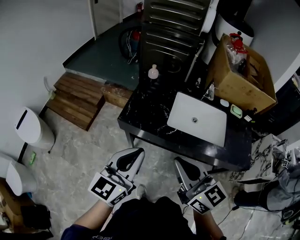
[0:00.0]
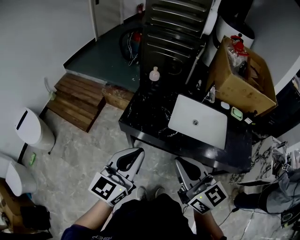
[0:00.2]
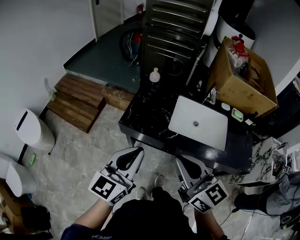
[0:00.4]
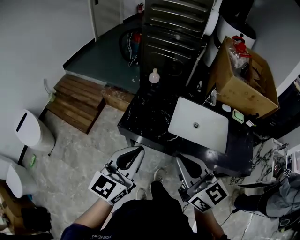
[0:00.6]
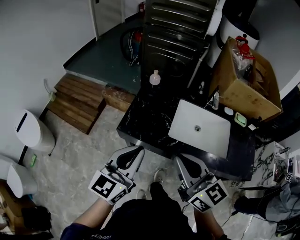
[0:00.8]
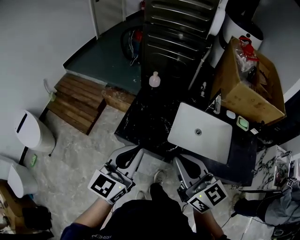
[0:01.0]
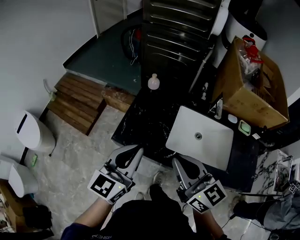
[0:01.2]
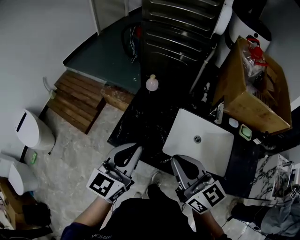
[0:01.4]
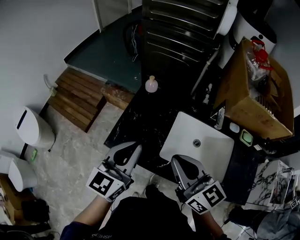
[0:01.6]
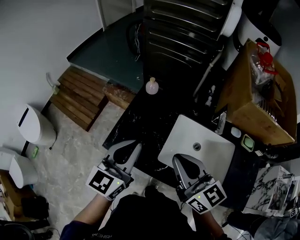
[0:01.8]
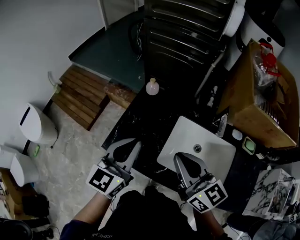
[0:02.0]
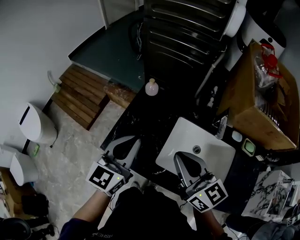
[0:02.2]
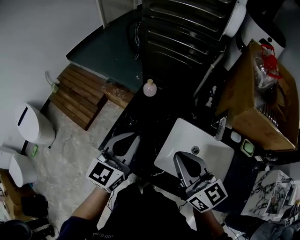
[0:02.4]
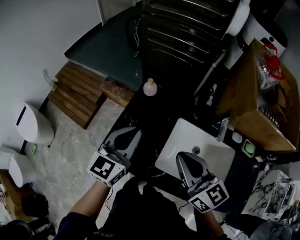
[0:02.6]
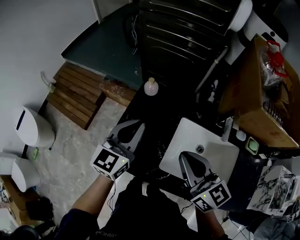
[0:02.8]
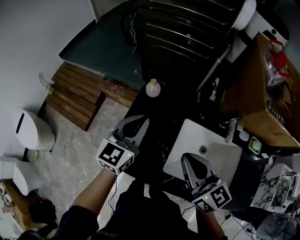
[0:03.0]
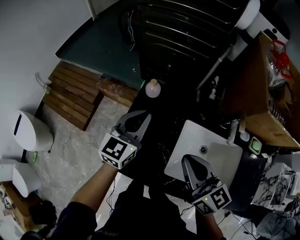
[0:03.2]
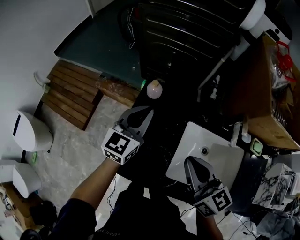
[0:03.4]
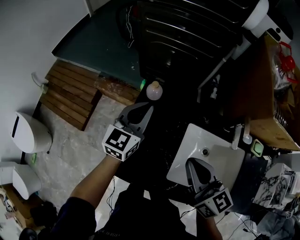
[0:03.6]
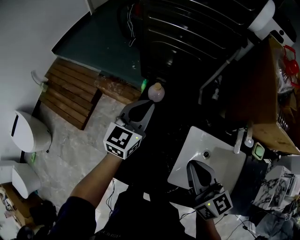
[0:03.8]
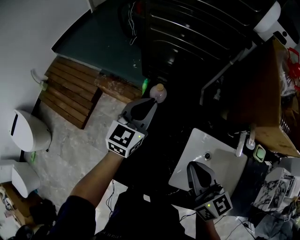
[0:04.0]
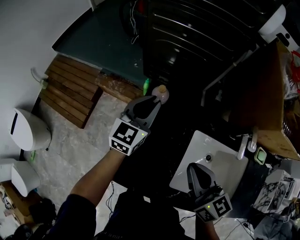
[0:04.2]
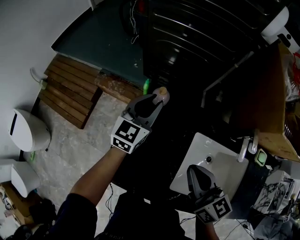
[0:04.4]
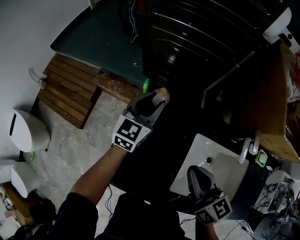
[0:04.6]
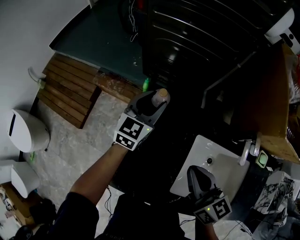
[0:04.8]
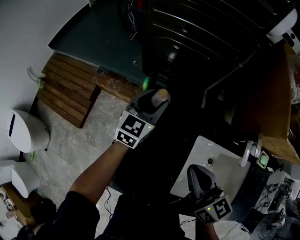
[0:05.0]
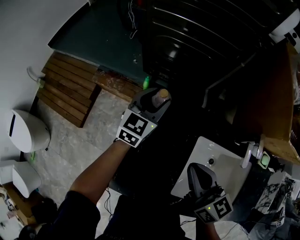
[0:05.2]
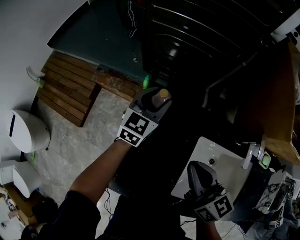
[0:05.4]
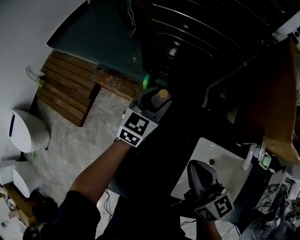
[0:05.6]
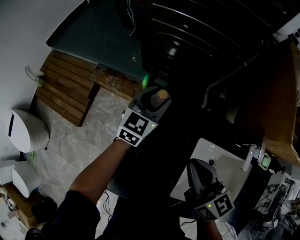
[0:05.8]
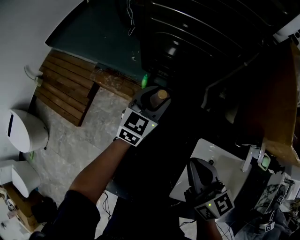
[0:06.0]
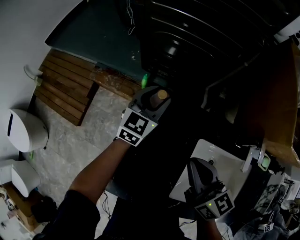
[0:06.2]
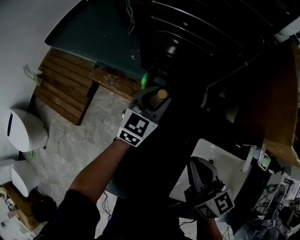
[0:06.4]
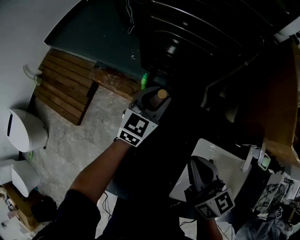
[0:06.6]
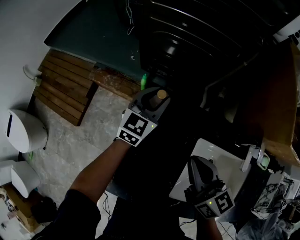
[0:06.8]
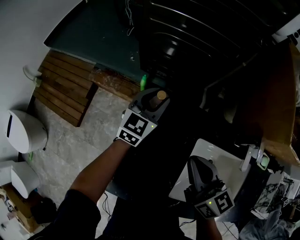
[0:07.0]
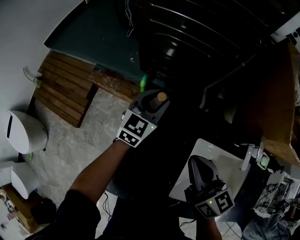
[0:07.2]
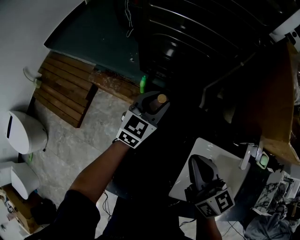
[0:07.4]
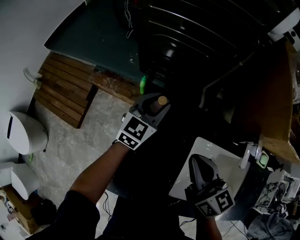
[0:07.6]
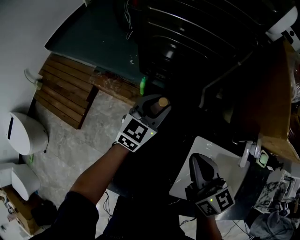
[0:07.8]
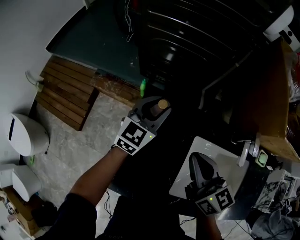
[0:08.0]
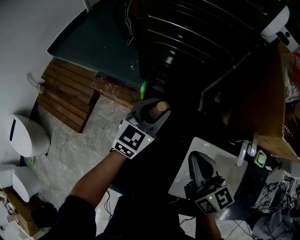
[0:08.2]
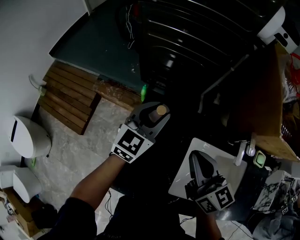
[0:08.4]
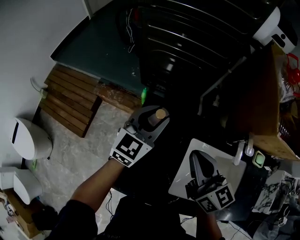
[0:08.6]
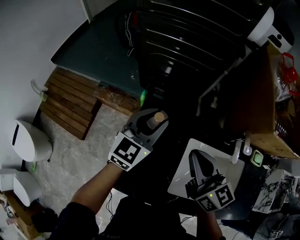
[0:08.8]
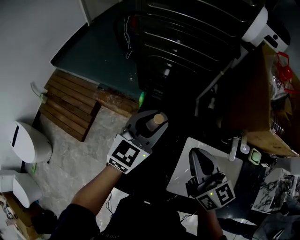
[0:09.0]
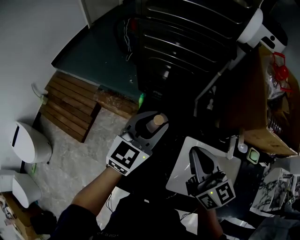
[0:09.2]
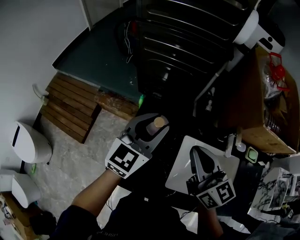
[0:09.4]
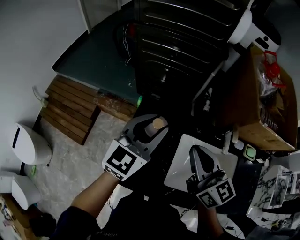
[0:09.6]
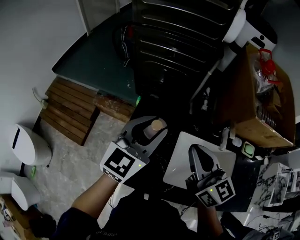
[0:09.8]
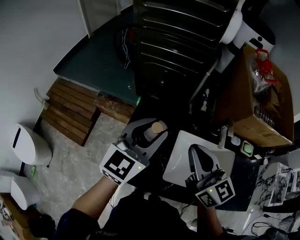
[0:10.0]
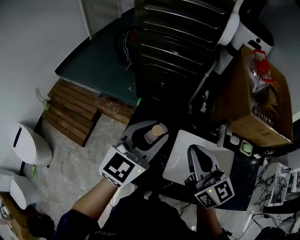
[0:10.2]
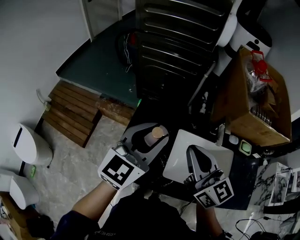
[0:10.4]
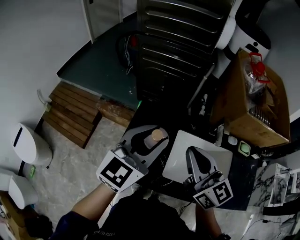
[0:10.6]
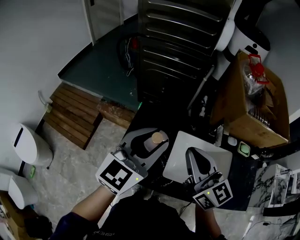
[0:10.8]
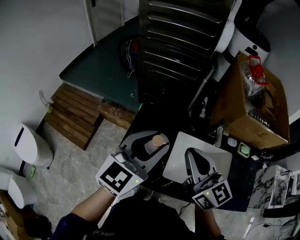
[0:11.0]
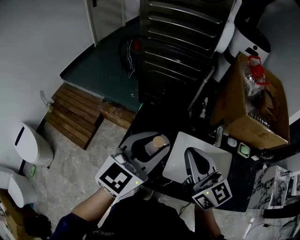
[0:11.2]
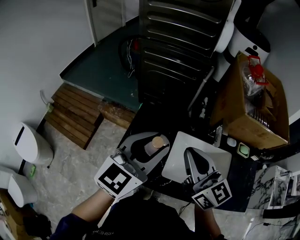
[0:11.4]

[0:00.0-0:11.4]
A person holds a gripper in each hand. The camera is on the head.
0:00.0 to 0:01.4: The grippers both shift forward by roughly 20 cm.
0:01.4 to 0:02.8: The left gripper heads forward, covering some 20 cm. Meanwhile the right gripper goes some 15 cm forward and to the right.
0:02.8 to 0:04.2: The right gripper travels forward and downward by roughly 10 cm. The left gripper moves forward and downward, some 20 cm.
0:04.2 to 0:05.6: The right gripper travels forward by about 5 cm, while the left gripper travels forward and downward by about 10 cm, and opens.
0:05.6 to 0:07.2: There are only small adjustments of the grippers.
0:07.2 to 0:08.6: The left gripper shifts some 15 cm upward and backward. The right gripper heads upward, covering about 5 cm.
0:08.6 to 0:10.0: The right gripper goes about 15 cm upward and backward, while the left gripper goes about 20 cm backward and upward.
0:10.0 to 0:11.4: The left gripper moves backward and upward, some 10 cm. Meanwhile the right gripper shifts roughly 5 cm backward.

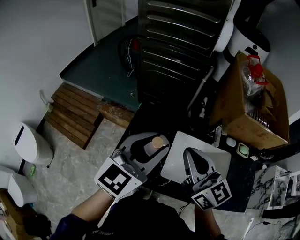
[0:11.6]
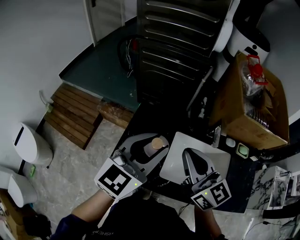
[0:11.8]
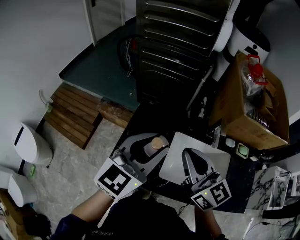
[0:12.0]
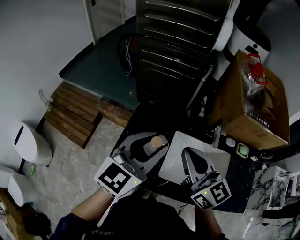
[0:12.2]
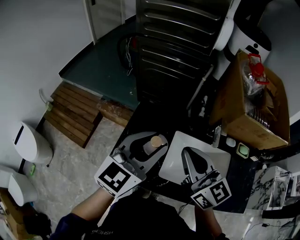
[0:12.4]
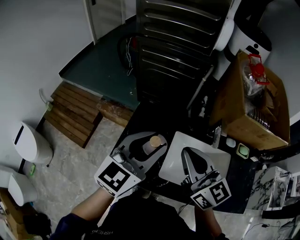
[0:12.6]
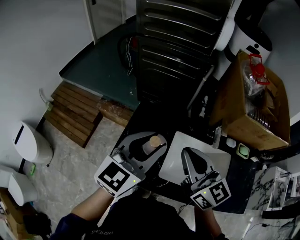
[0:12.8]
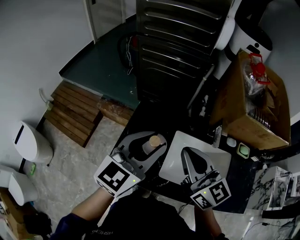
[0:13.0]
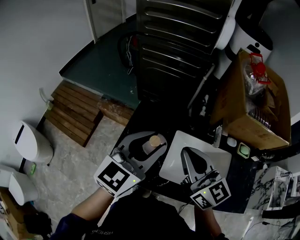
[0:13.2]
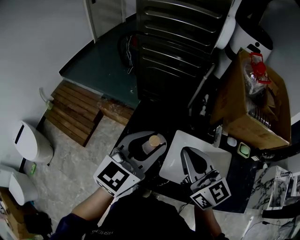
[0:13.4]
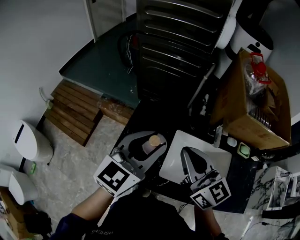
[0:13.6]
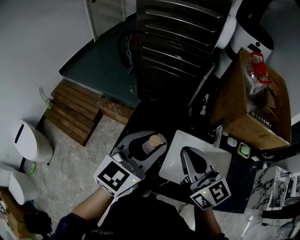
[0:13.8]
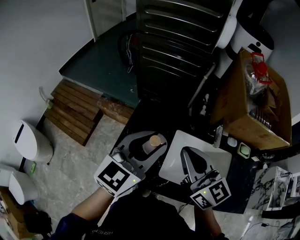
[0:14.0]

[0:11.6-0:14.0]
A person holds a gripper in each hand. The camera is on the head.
0:11.6 to 0:12.8: The grippers move only a little.
0:12.8 to 0:14.0: Both grippers stay put.

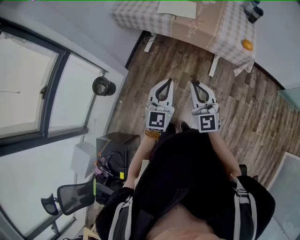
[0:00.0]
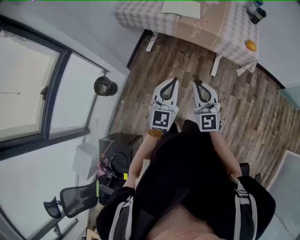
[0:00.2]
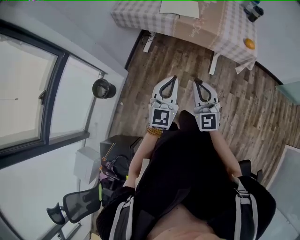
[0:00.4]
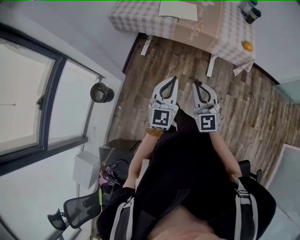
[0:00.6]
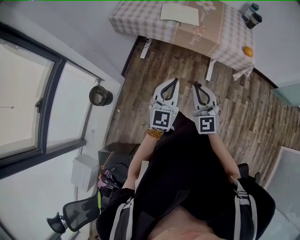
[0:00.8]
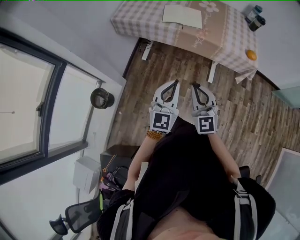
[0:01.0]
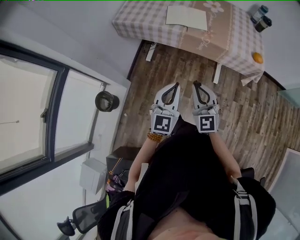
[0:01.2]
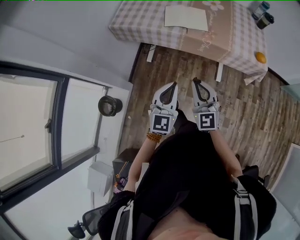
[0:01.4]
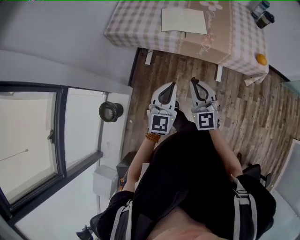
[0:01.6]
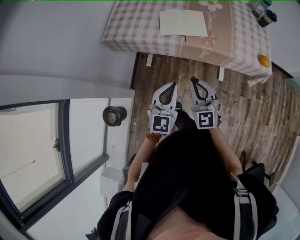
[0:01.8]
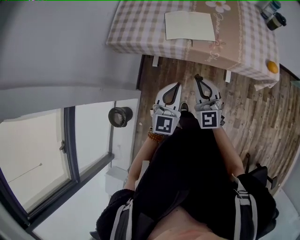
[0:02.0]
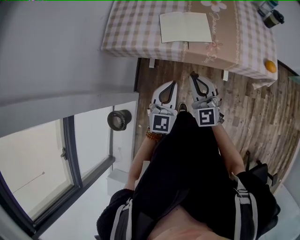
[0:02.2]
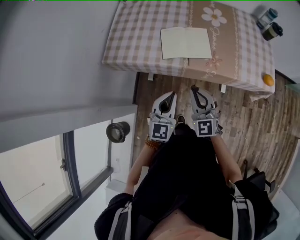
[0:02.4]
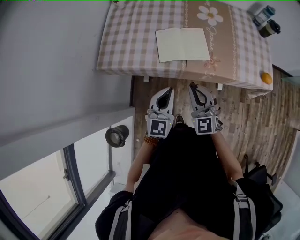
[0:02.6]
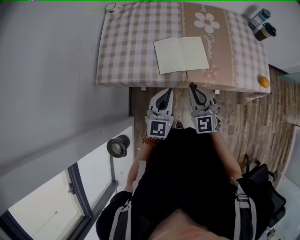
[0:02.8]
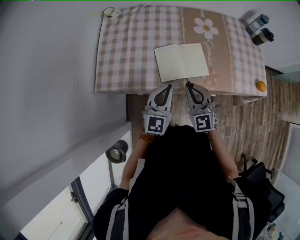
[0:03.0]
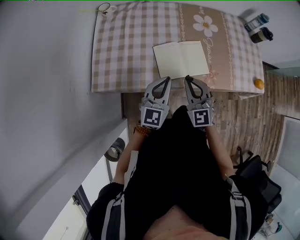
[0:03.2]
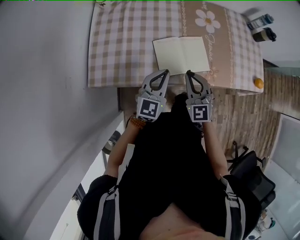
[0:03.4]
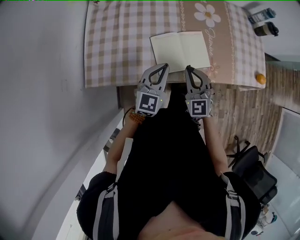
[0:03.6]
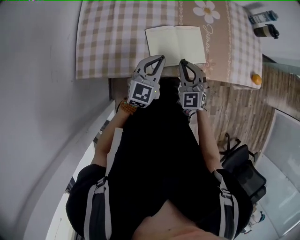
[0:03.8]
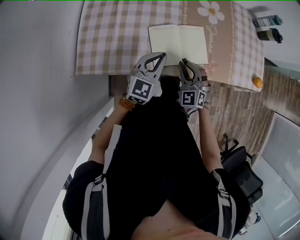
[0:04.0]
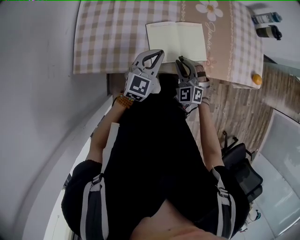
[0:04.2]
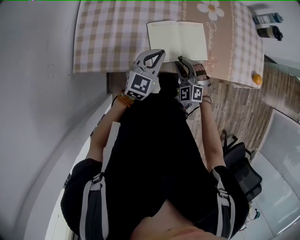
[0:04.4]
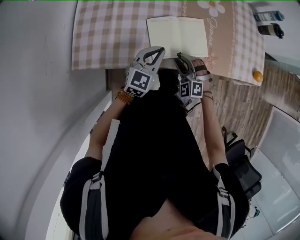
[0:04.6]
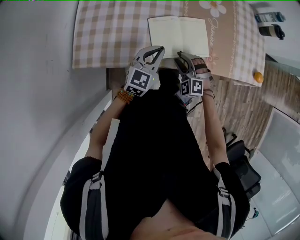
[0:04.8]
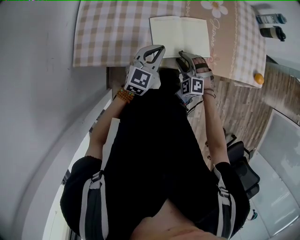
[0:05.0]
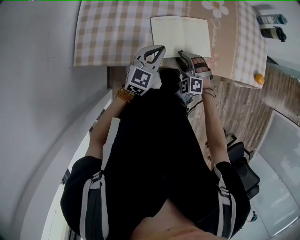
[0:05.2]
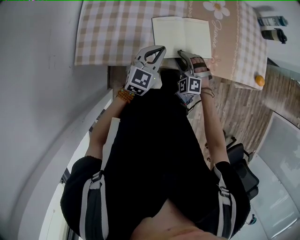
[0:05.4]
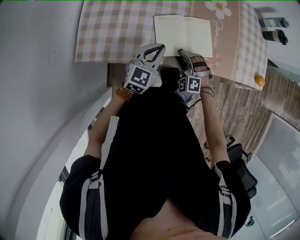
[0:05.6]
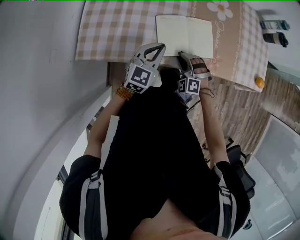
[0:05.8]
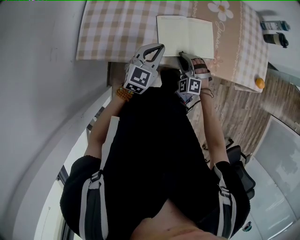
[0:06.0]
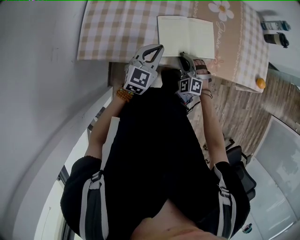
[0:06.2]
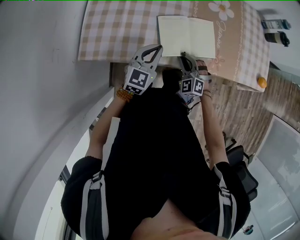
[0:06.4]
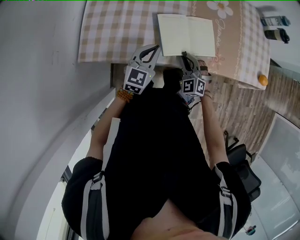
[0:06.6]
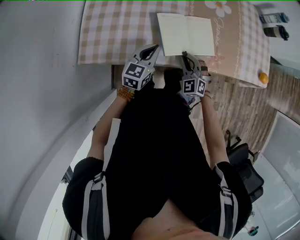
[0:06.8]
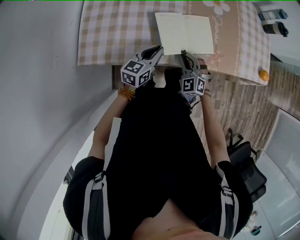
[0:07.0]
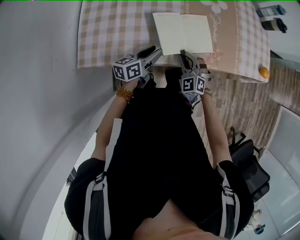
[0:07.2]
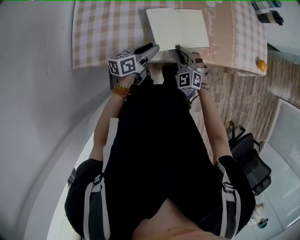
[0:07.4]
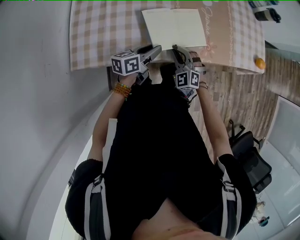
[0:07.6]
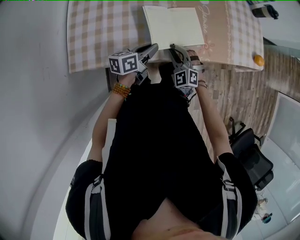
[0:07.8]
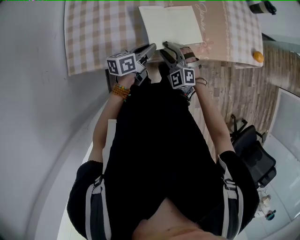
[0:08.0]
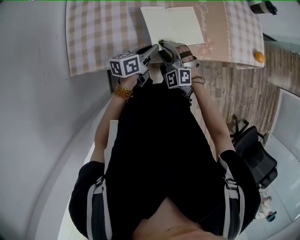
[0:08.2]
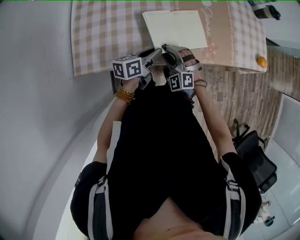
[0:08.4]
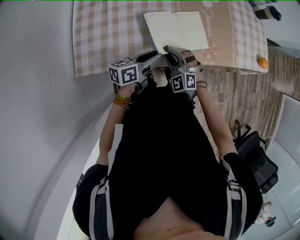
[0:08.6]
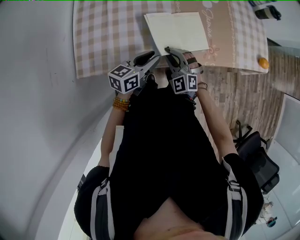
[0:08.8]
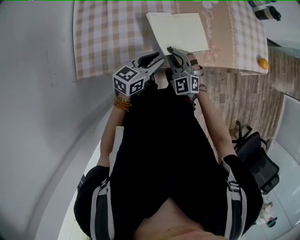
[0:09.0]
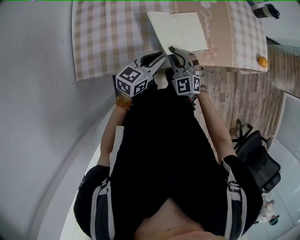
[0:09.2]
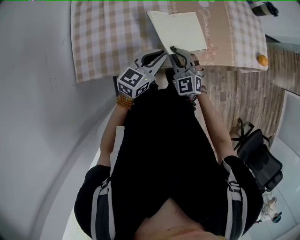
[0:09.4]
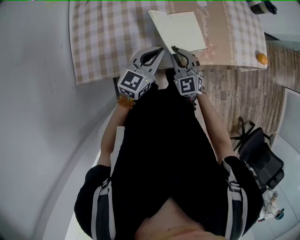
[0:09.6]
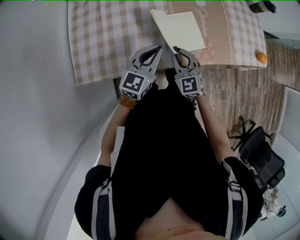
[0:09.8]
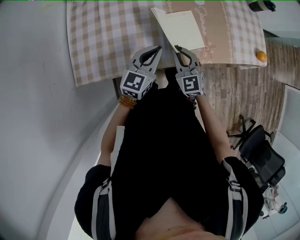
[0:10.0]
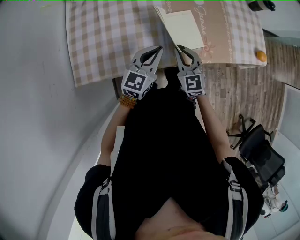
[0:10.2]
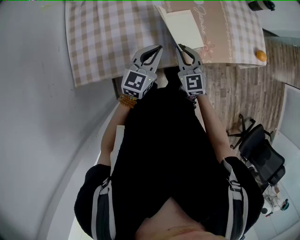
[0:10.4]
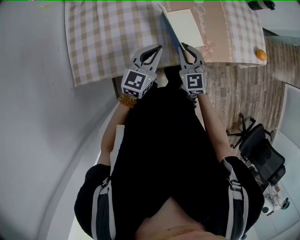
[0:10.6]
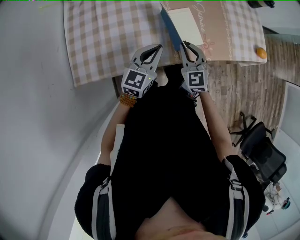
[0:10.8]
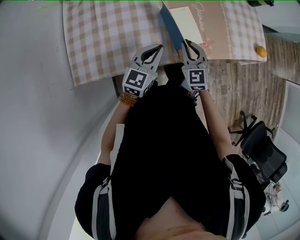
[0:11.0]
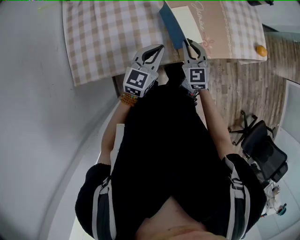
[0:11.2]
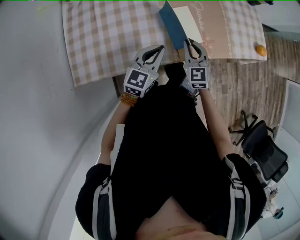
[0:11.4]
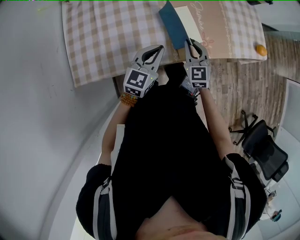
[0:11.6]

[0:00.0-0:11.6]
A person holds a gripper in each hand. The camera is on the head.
0:00.0 to 0:01.4: Both grippers move forward and to the left, some 20 cm.
0:01.4 to 0:02.8: Both grippers travel together forward, approximately 35 cm.
0:02.8 to 0:04.4: The right gripper moves downward and forward, some 20 cm, changes its angle by about 40 degrees, and opens up; the left gripper heads forward and downward, covering about 15 cm.
0:04.4 to 0:05.8: The grippers make only small movements.
0:05.8 to 0:07.2: The left gripper shifts approximately 5 cm downward, rotates around the line of its fingers by about 40 degrees, counterclockwise from behind, and opens up, while the right gripper turns by approximately 30 degrees.
0:07.2 to 0:08.8: The right gripper shifts some 5 cm to the left, and opens and closes again.
0:08.8 to 0:10.2: The right gripper travels to the right by some 5 cm, and changes its angle by roughly 40 degrees. Meanwhile the left gripper changes place by roughly 5 cm, turns by approximately 30 degrees, and closes its fingers.
0:10.2 to 0:11.6: The right gripper moves to the right, approximately 5 cm.
